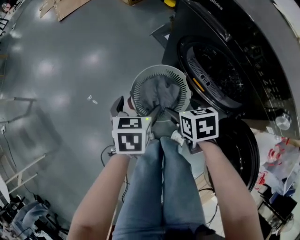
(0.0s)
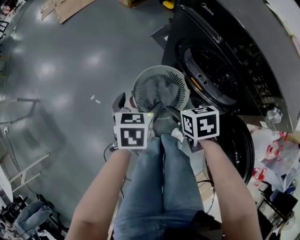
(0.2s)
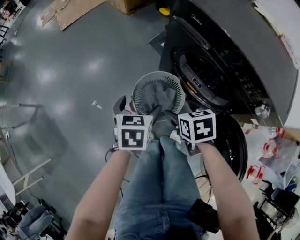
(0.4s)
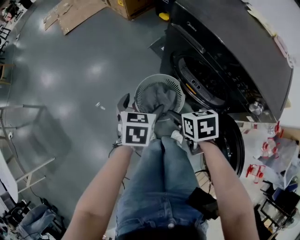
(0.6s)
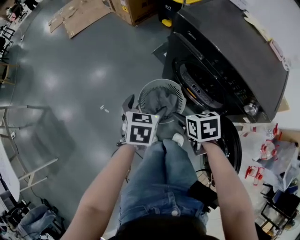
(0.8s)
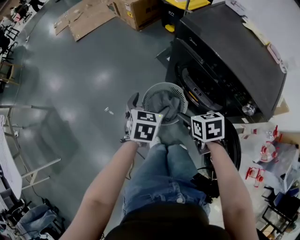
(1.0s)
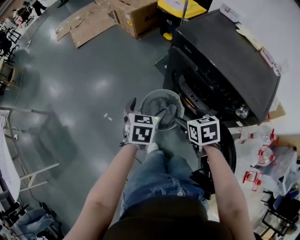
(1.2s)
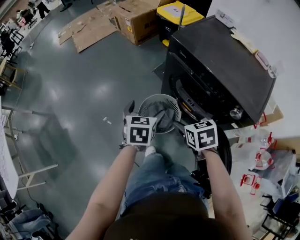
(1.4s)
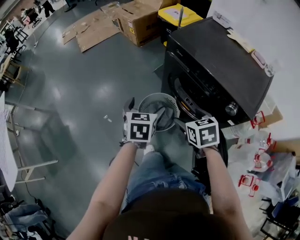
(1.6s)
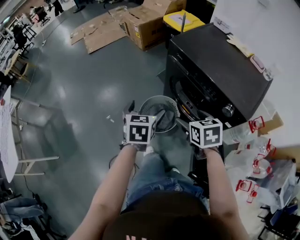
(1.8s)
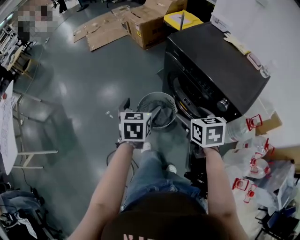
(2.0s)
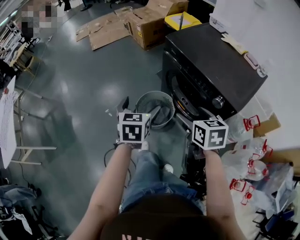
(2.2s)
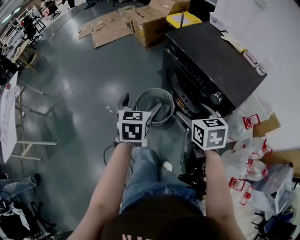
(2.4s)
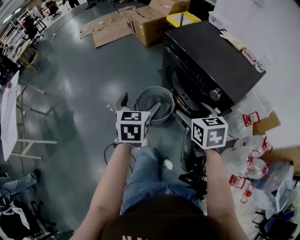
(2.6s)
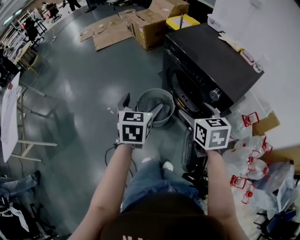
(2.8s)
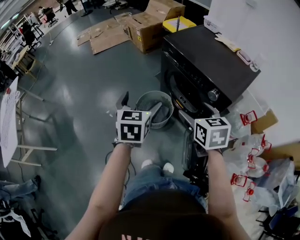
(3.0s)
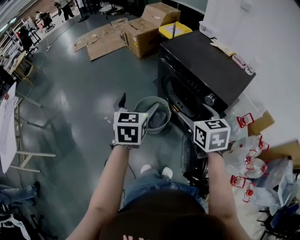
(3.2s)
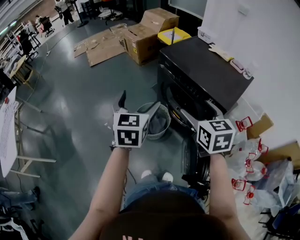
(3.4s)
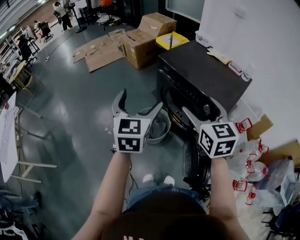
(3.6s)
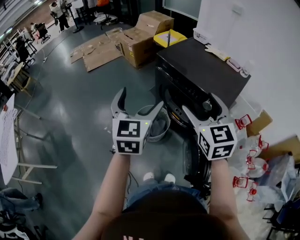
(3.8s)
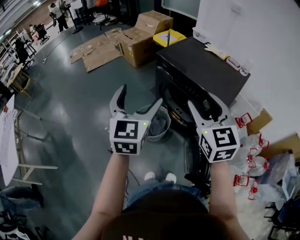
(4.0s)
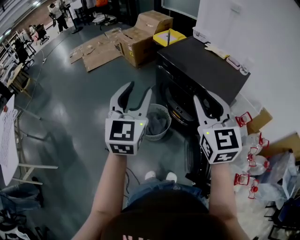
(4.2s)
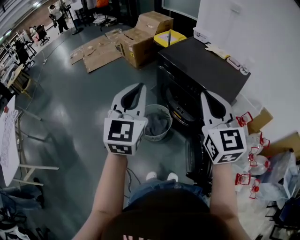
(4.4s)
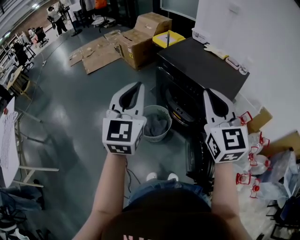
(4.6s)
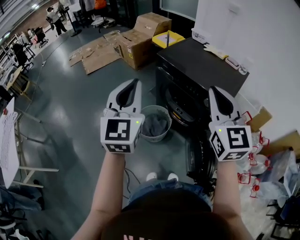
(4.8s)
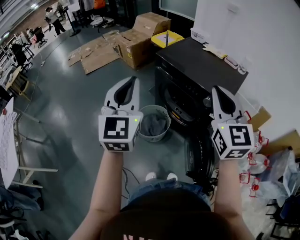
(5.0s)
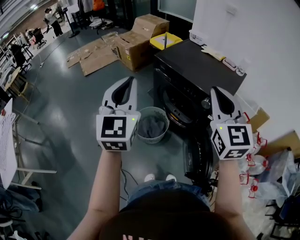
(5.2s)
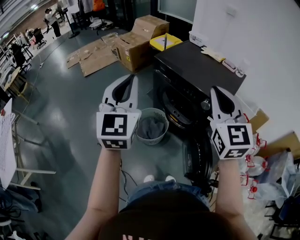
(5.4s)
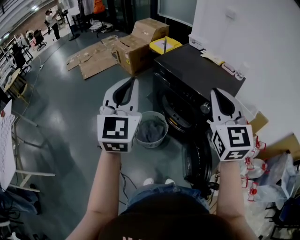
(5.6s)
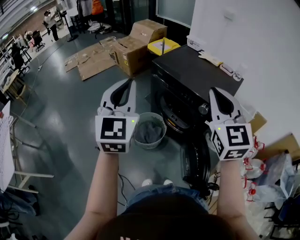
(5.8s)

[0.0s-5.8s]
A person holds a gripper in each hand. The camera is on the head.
0.0s to 1.4s: The grippers both shift upward by approximately 25 cm.
1.4s to 2.8s: The right gripper goes approximately 20 cm backward, upward and to the right, while the left gripper heads backward and upward, covering about 25 cm.
2.8s to 4.4s: Both grippers move upward, roughly 20 cm. The left gripper rotates about 30 degrees, and closes its fingers. The right gripper tilts its fingers roughly 30 degrees upward, and closes its fingers.
4.4s to 5.8s: The right gripper shifts by about 5 cm.

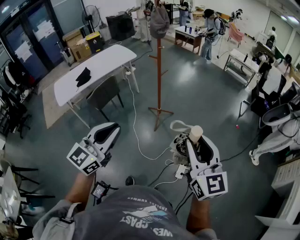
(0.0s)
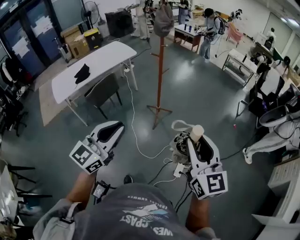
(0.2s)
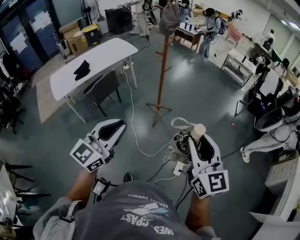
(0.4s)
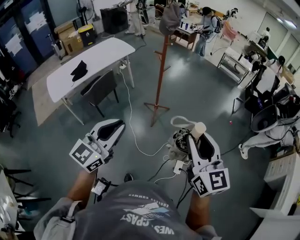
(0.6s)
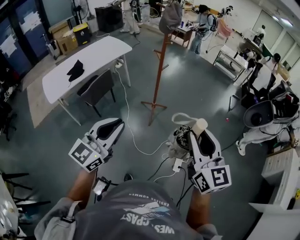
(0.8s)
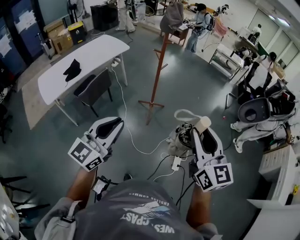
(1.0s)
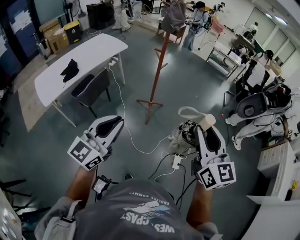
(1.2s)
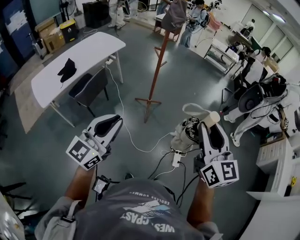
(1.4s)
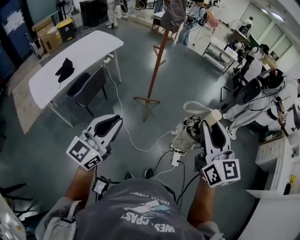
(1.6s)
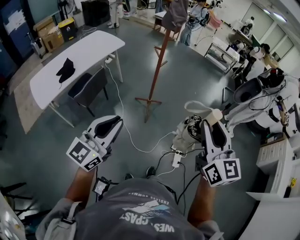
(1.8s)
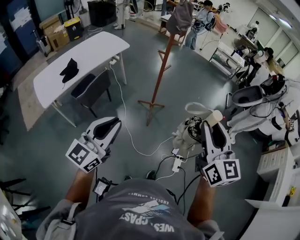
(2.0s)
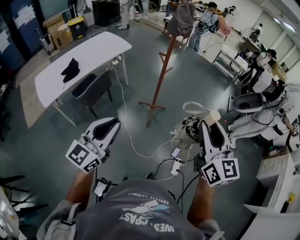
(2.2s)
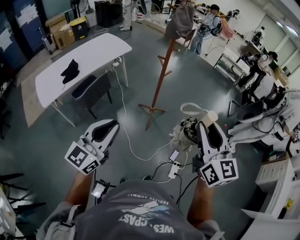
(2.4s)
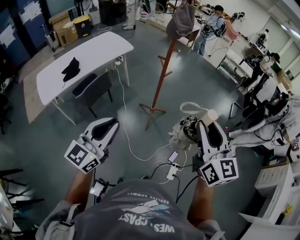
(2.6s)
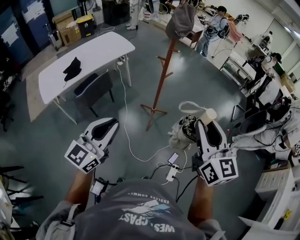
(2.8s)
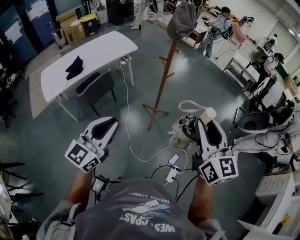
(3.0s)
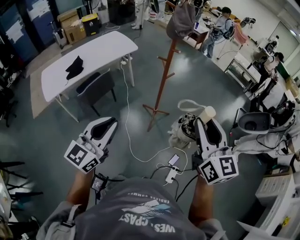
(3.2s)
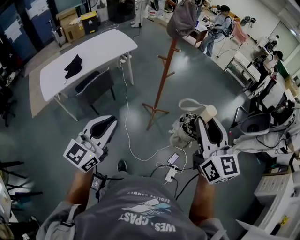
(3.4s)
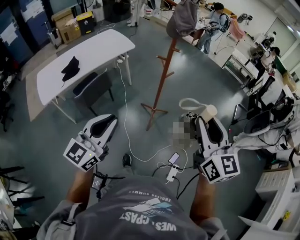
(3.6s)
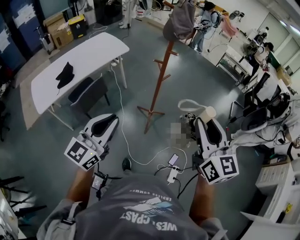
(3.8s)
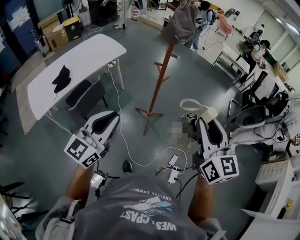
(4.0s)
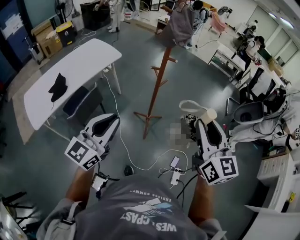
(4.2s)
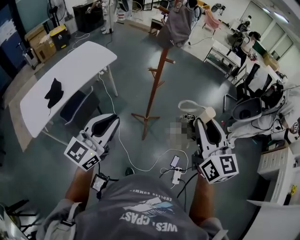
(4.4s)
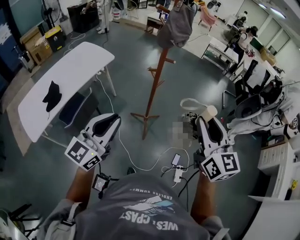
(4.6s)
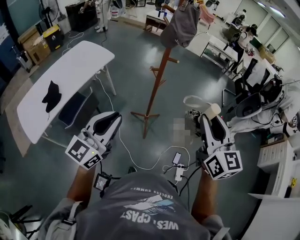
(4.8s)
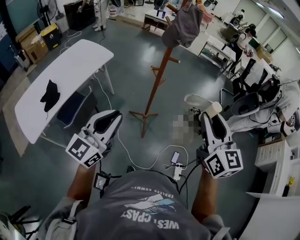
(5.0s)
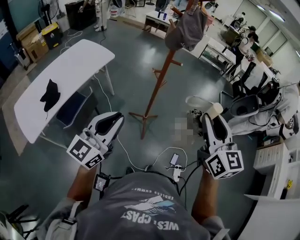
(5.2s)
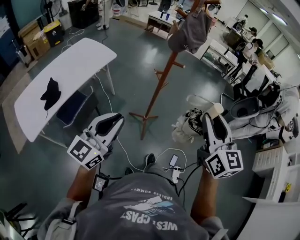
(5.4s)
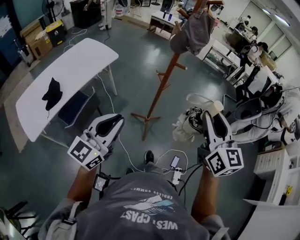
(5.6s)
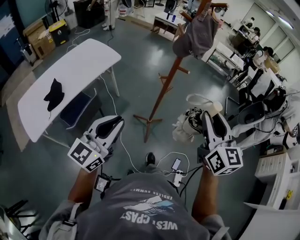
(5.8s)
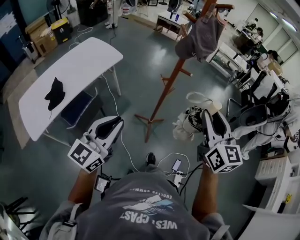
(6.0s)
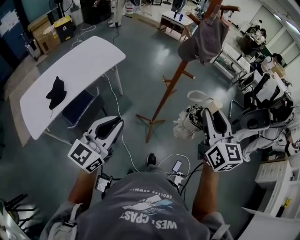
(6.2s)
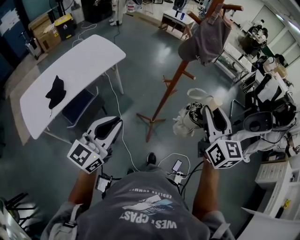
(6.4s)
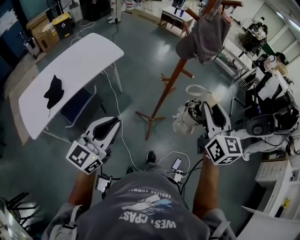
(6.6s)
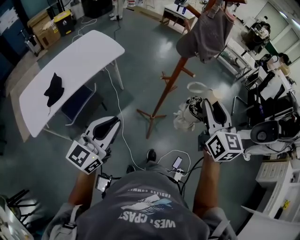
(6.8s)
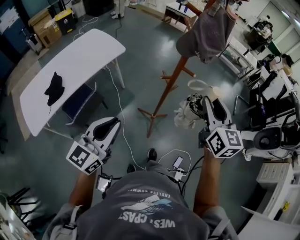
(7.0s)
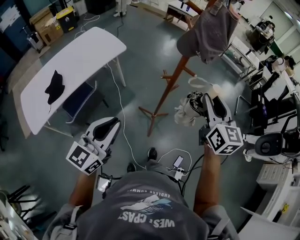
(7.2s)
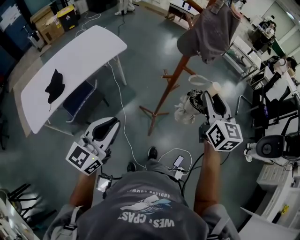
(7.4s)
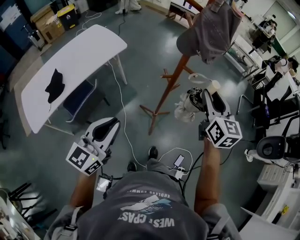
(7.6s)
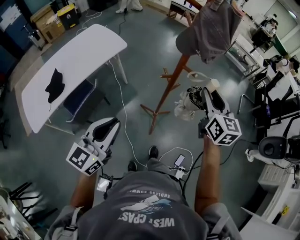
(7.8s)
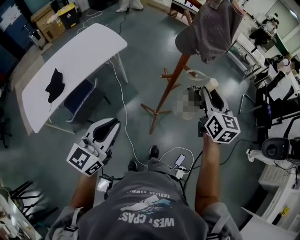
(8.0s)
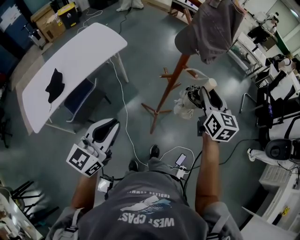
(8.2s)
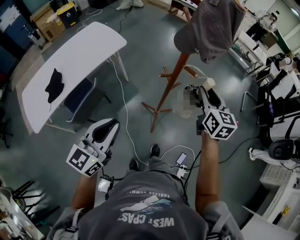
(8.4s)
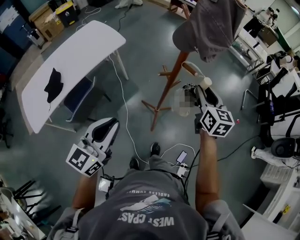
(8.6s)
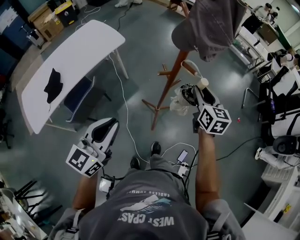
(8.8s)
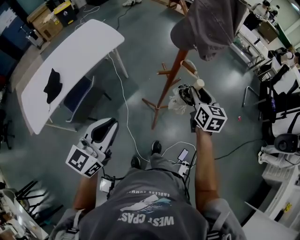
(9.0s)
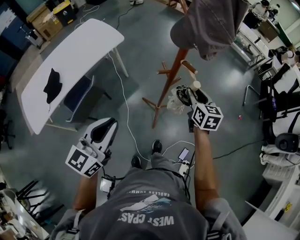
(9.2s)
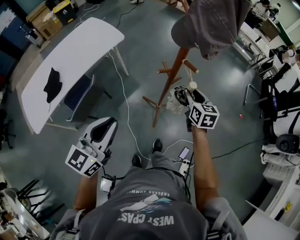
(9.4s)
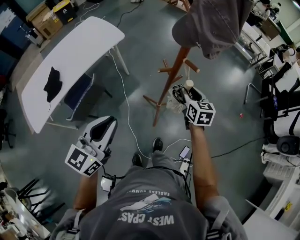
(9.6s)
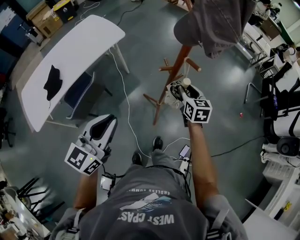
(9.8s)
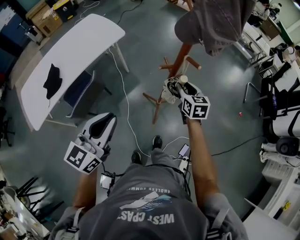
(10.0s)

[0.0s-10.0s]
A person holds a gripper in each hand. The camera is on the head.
0.0s to 1.4s: Both grippers move to the left, about 20 cm.
1.4s to 2.8s: The right gripper travels forward by about 15 cm; the left gripper is displaced forward by some 10 cm.
2.8s to 4.2s: The grippers both shift forward and to the left by about 15 cm.
4.2s to 5.8s: The left gripper shifts roughly 10 cm to the left and forward. The right gripper is displaced forward and to the left by approximately 10 cm.
5.8s to 7.2s: The left gripper travels forward by about 5 cm. The right gripper is displaced forward and downward by some 15 cm.
7.2s to 8.6s: The right gripper heads downward and forward, covering about 15 cm.
8.6s to 10.0s: The right gripper shifts roughly 15 cm downward and to the left.

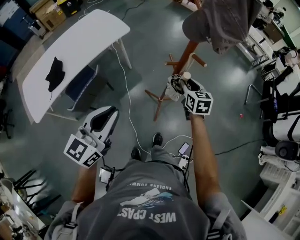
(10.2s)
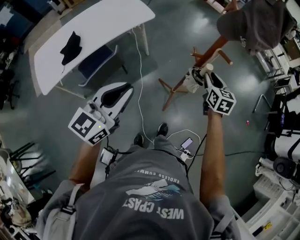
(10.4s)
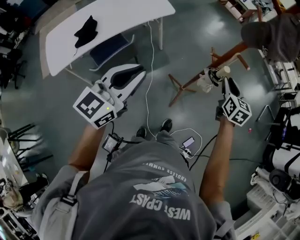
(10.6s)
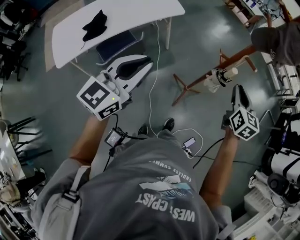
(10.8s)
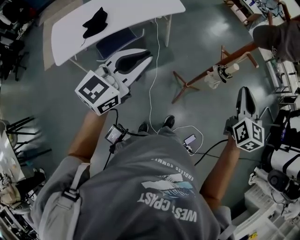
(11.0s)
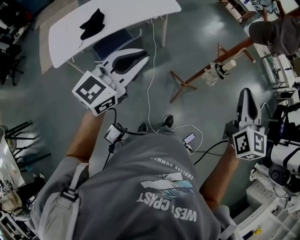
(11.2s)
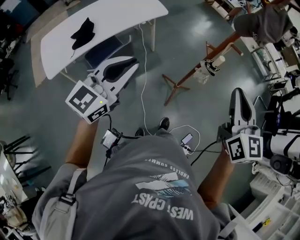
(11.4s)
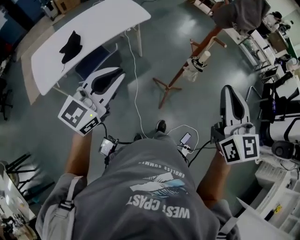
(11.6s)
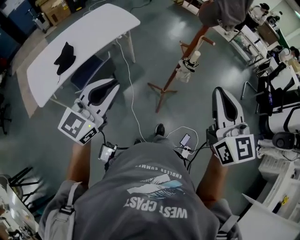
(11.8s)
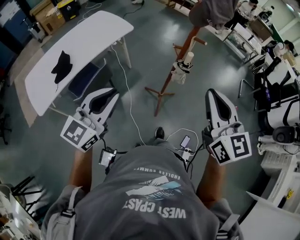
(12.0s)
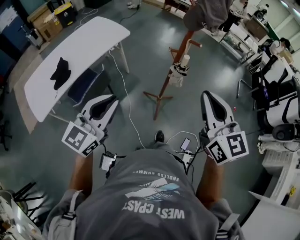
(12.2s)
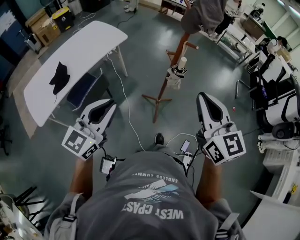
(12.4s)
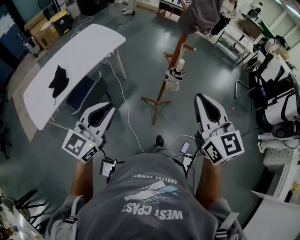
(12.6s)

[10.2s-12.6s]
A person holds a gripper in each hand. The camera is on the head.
10.2s to 11.4s: The right gripper shifts some 35 cm upward and backward, swivels about 30 degrees, and closes up, while the left gripper moves to the left, backward and upward, about 10 cm.
11.4s to 12.6s: The right gripper moves backward, roughly 5 cm; the left gripper changes place by approximately 5 cm.

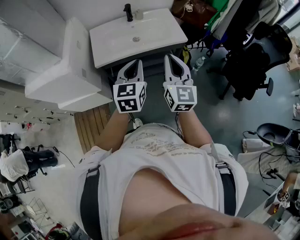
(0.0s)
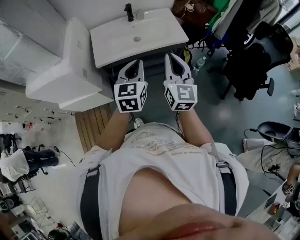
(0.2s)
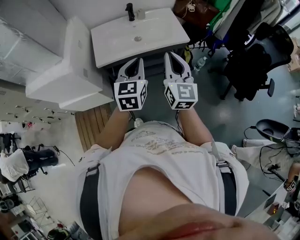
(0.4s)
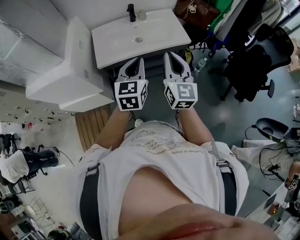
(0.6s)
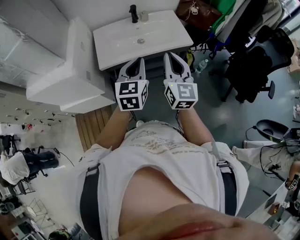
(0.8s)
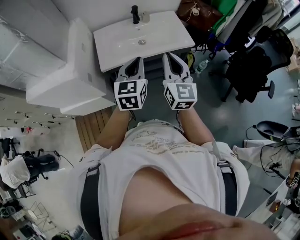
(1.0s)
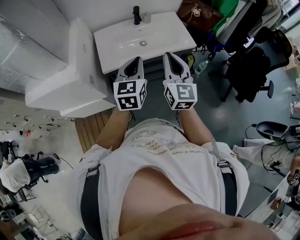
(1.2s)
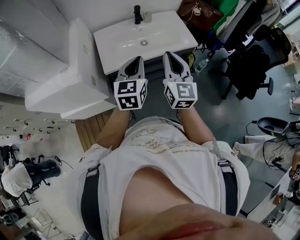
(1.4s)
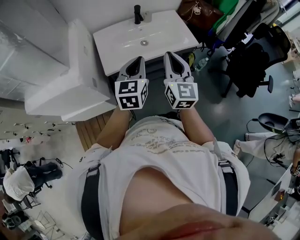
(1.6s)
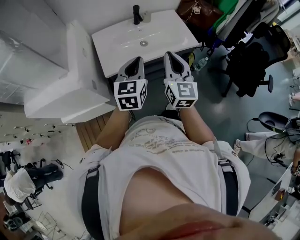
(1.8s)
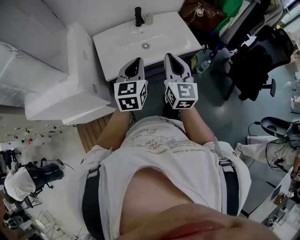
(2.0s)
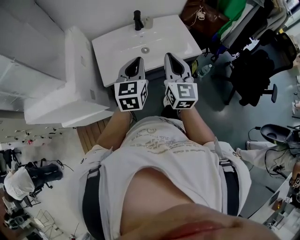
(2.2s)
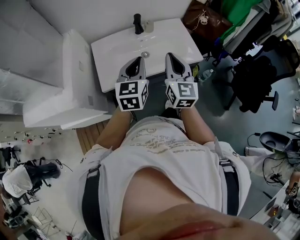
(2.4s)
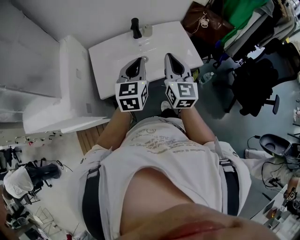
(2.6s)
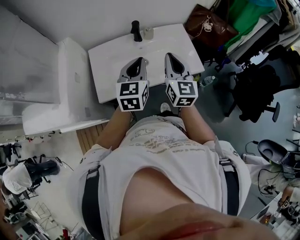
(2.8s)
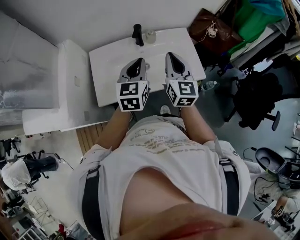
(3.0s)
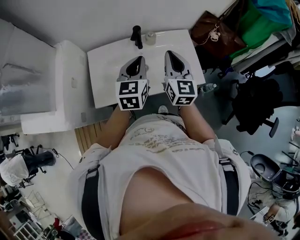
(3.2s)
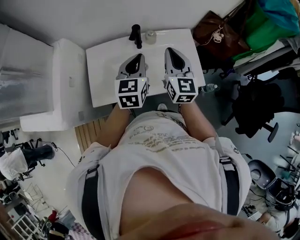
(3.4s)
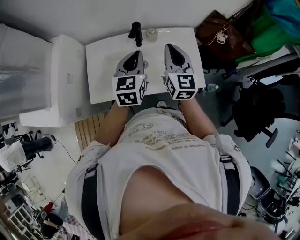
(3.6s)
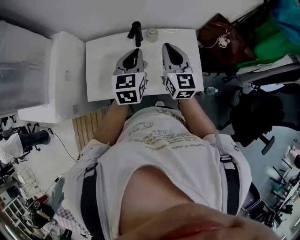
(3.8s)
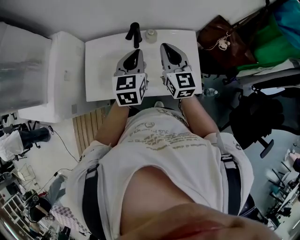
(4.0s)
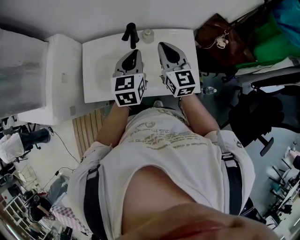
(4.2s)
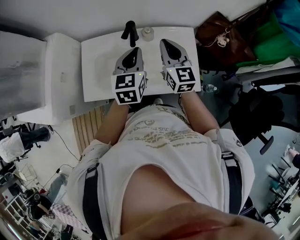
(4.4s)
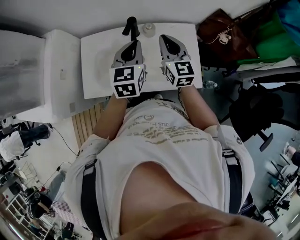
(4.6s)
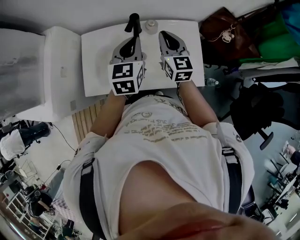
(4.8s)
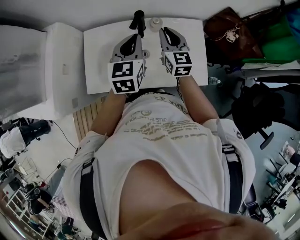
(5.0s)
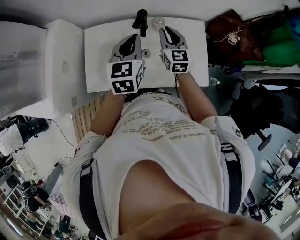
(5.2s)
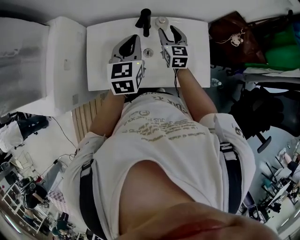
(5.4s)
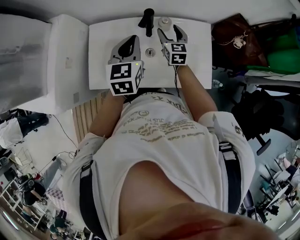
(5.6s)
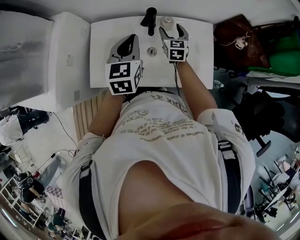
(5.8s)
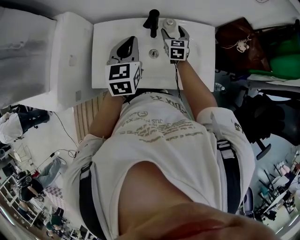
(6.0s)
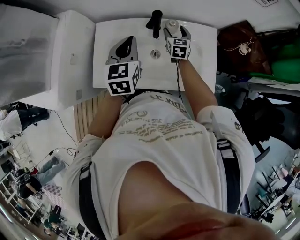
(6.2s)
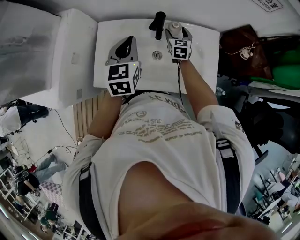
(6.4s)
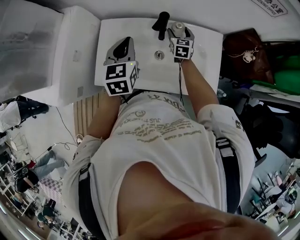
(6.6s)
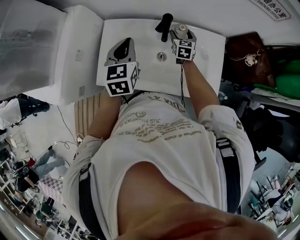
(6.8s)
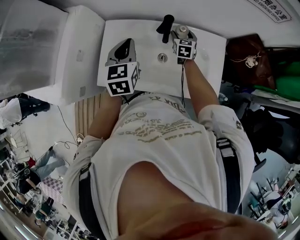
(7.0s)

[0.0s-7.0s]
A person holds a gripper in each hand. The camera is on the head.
0.0s to 1.4s: The grippers both shift to the left and forward by some 15 cm.
1.4s to 2.8s: The grippers both shift forward by about 20 cm.
2.8s to 4.2s: The two grippers go about 15 cm forward. The right gripper changes its angle by some 20 degrees.
4.2s to 5.6s: The right gripper travels downward and forward by roughly 20 cm, and opens up. The left gripper is displaced to the left by approximately 5 cm.
5.6s to 7.0s: The right gripper is displaced downward and forward by some 10 cm. The left gripper goes approximately 10 cm to the left.
